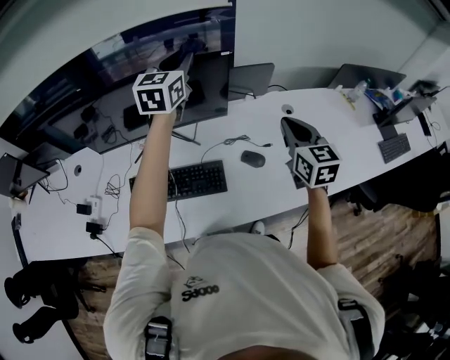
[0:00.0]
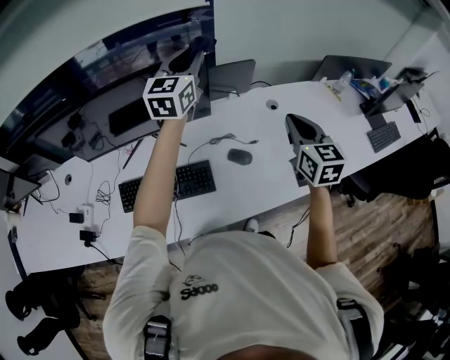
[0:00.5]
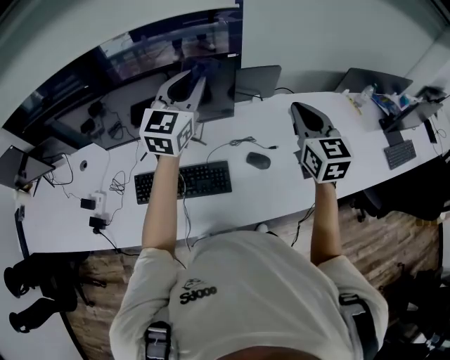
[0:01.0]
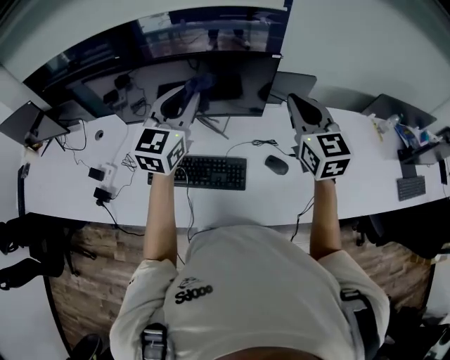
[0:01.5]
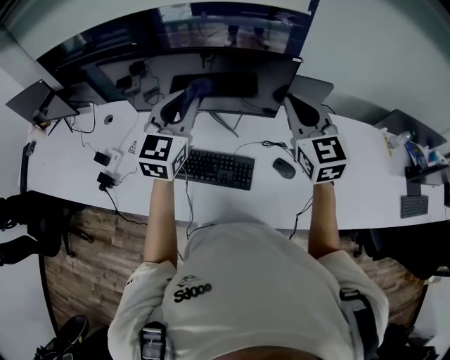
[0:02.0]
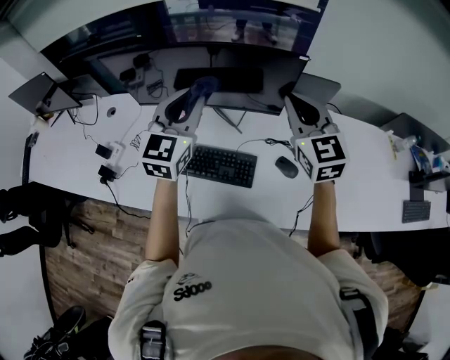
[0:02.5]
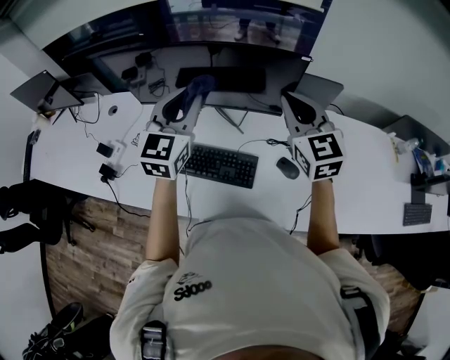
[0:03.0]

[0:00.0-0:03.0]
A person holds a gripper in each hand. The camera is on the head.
0:00.0 to 0:01.5: The right gripper travels to the left and upward by roughly 15 cm, while the left gripper travels backward and to the left by about 15 cm.
0:01.5 to 0:03.0: The right gripper shifts roughly 5 cm to the left. Meanwhile the left gripper ends up roughly 5 cm from where it was.

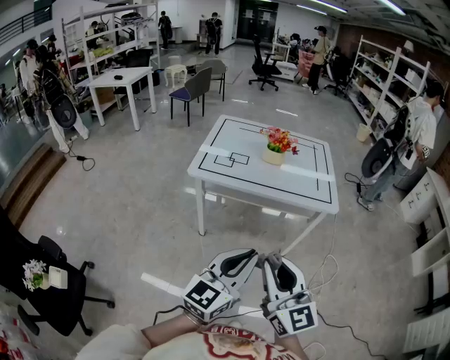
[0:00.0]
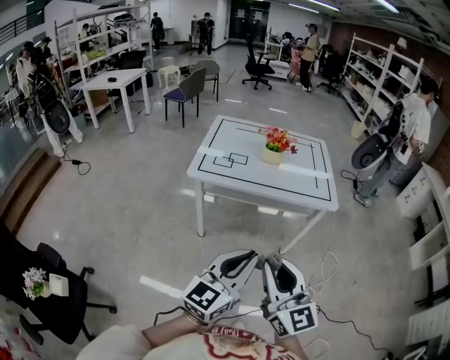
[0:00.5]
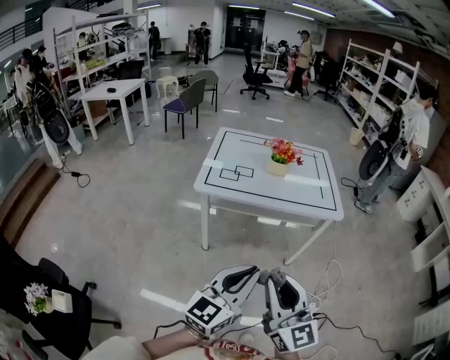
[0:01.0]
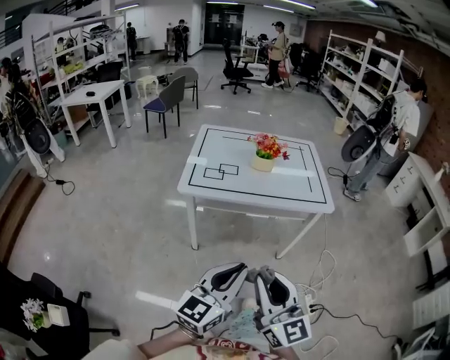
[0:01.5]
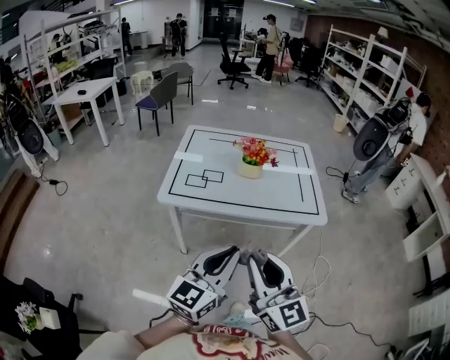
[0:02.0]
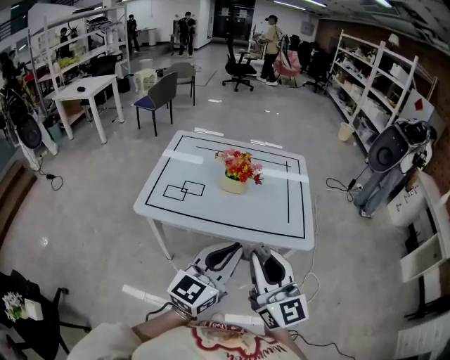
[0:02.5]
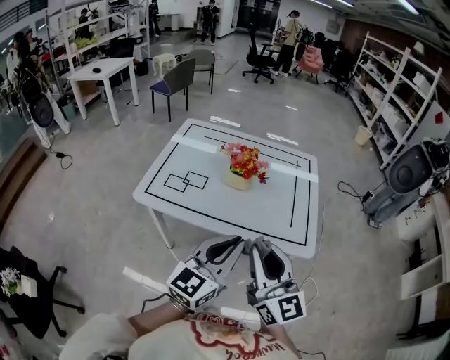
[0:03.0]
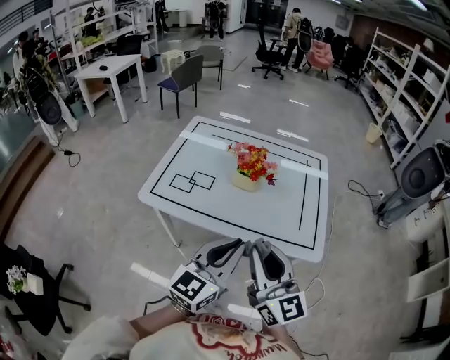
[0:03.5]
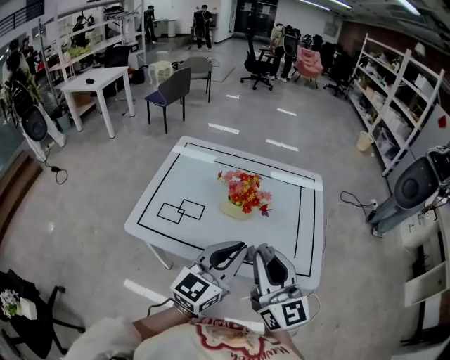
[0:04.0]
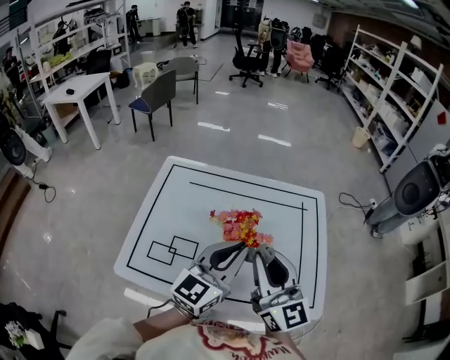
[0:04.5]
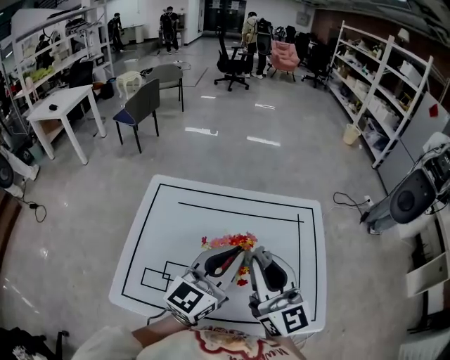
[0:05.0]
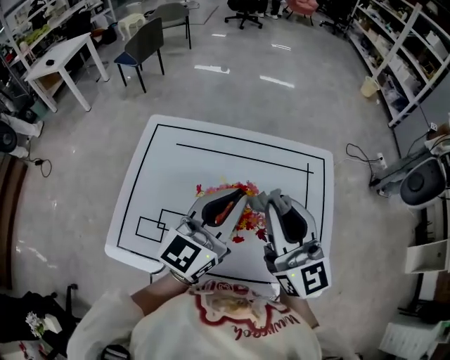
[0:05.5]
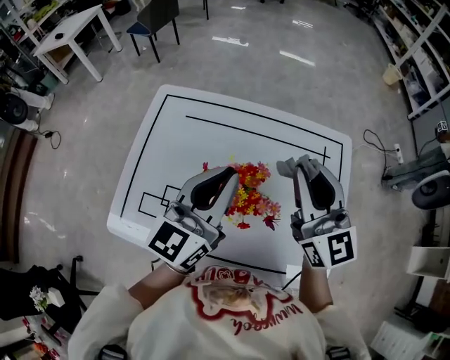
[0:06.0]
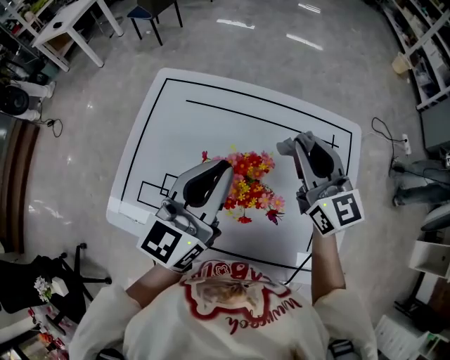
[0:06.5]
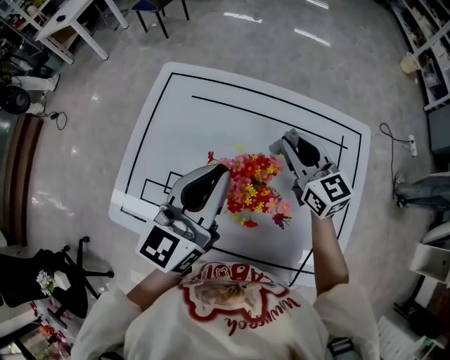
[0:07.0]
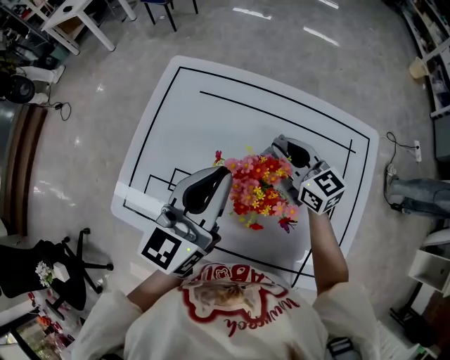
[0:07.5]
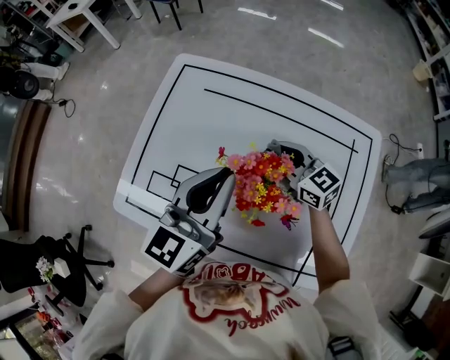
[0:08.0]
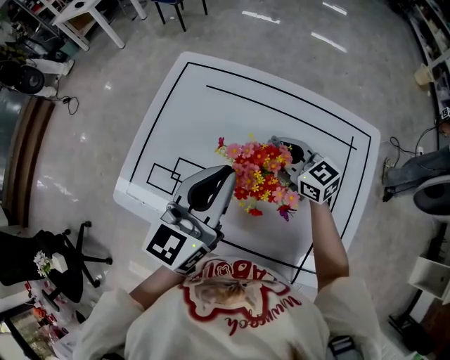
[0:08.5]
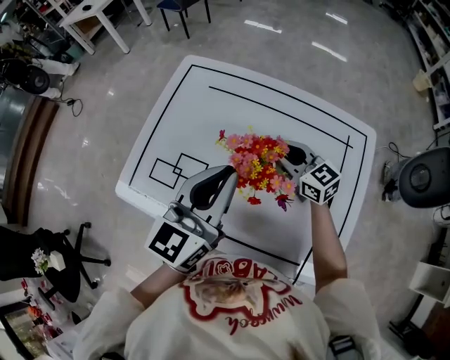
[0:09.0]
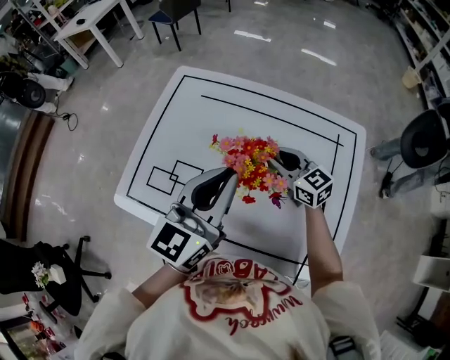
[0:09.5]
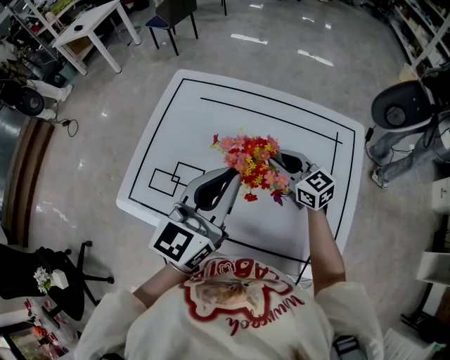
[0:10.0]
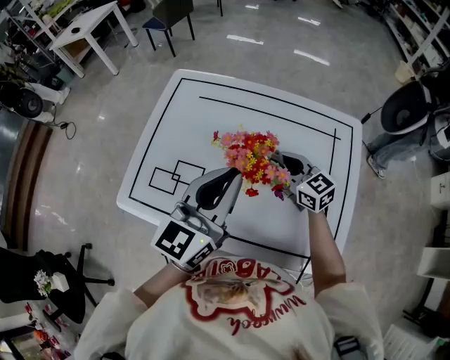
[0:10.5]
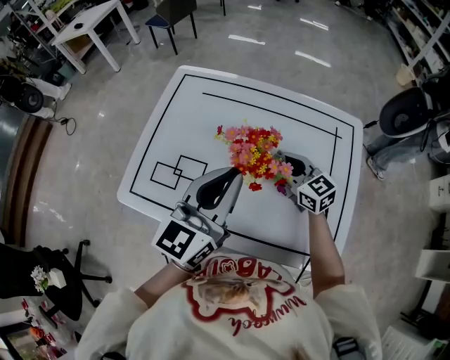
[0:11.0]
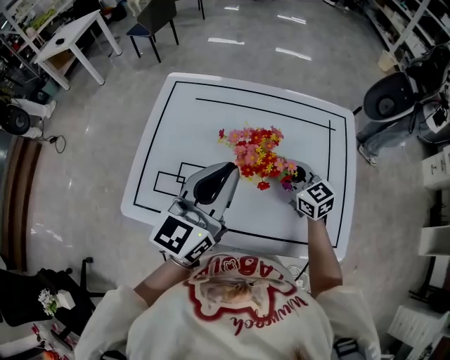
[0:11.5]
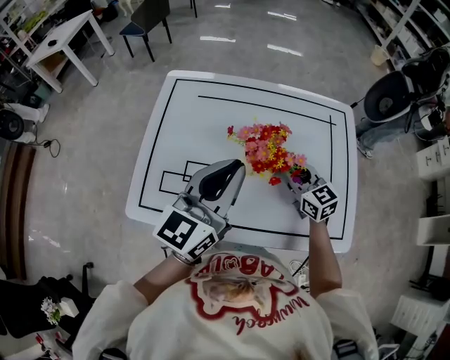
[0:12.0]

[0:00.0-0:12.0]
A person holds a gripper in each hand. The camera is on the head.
0:00.0 to 0:02.0: Both grippers travel together forward, some 15 cm.
0:02.0 to 0:04.0: The right gripper is displaced forward by some 30 cm, while the left gripper is displaced forward and to the right by roughly 30 cm.
0:04.0 to 0:06.0: The grippers both shift forward by about 30 cm.
0:06.0 to 0:08.0: The right gripper moves downward, roughly 25 cm, and changes its angle by some 40 degrees, while the left gripper changes place by some 5 cm.
0:08.0 to 0:10.0: Both grippers move backward, about 5 cm.
0:10.0 to 0:12.0: The left gripper is displaced to the left by some 5 cm; the right gripper heads backward, covering roughly 5 cm.

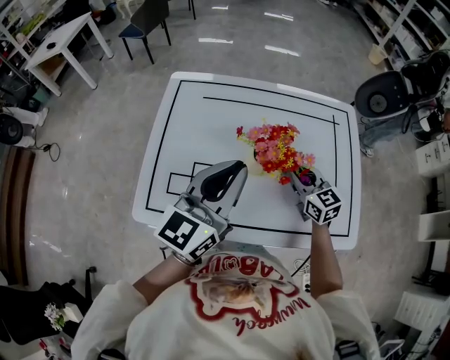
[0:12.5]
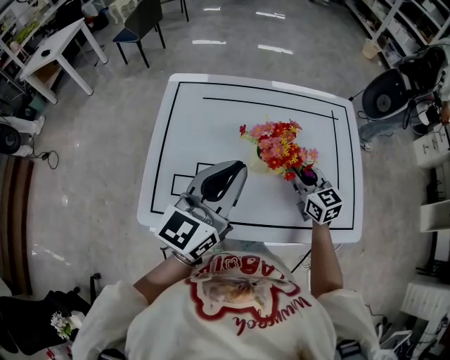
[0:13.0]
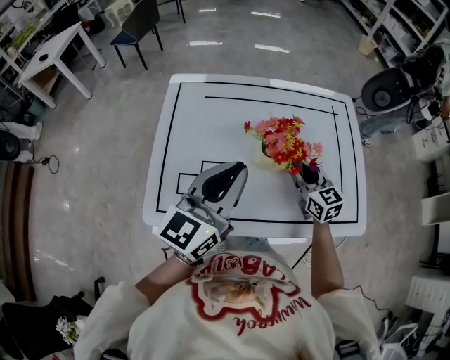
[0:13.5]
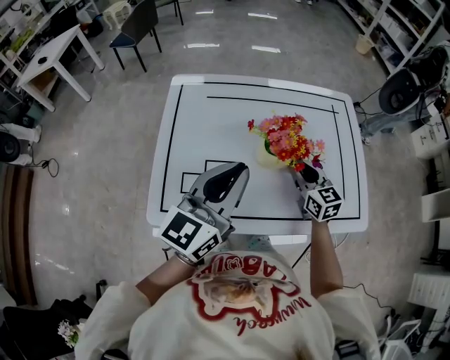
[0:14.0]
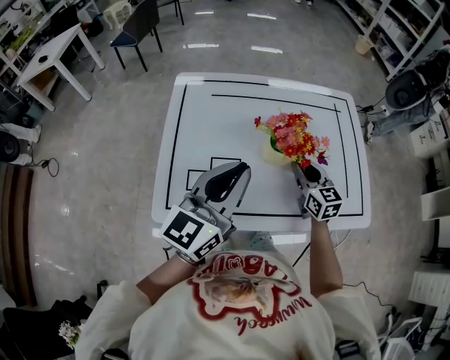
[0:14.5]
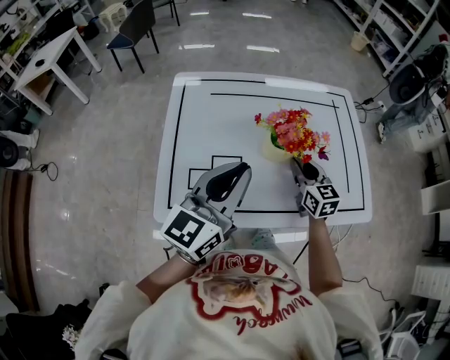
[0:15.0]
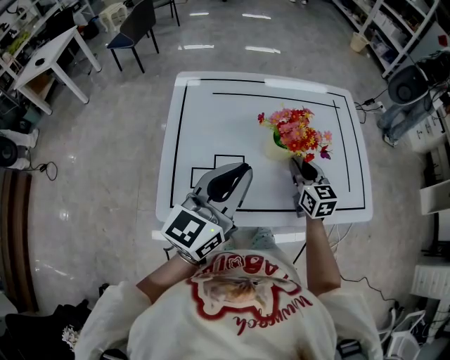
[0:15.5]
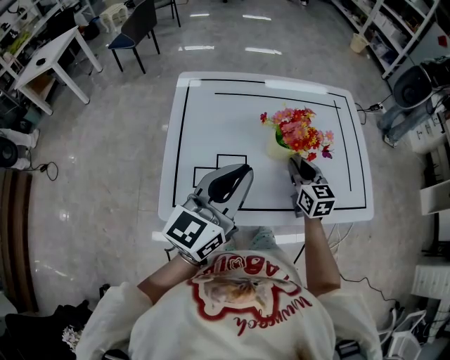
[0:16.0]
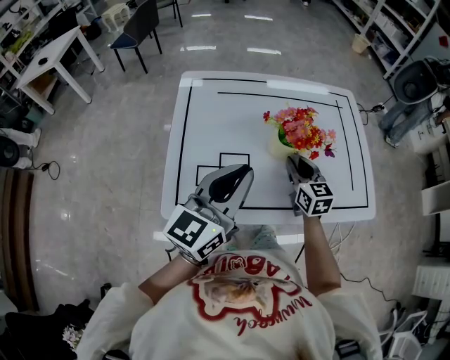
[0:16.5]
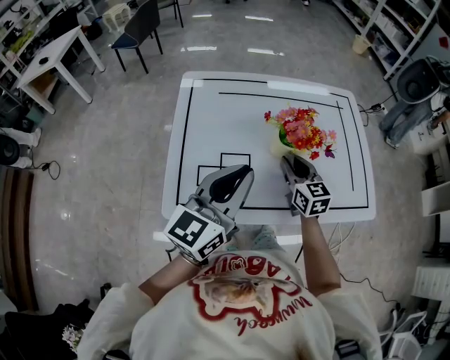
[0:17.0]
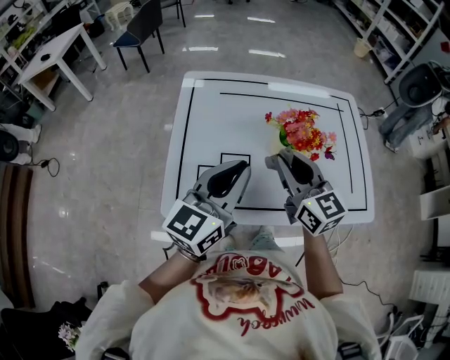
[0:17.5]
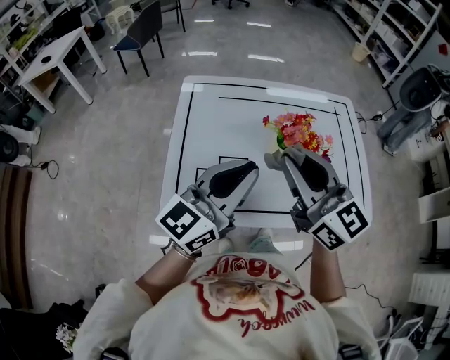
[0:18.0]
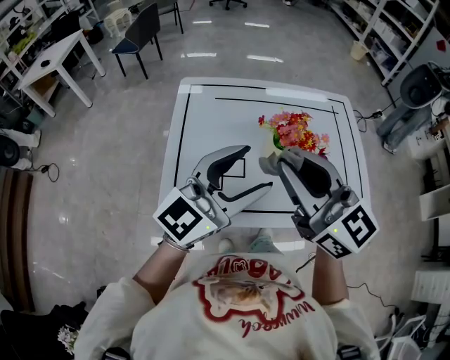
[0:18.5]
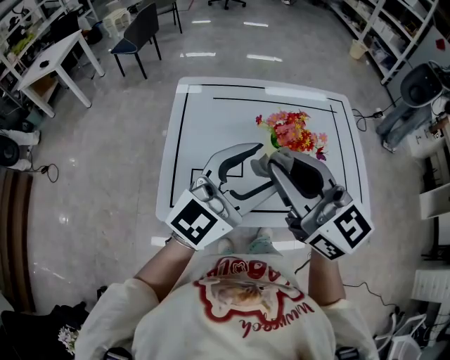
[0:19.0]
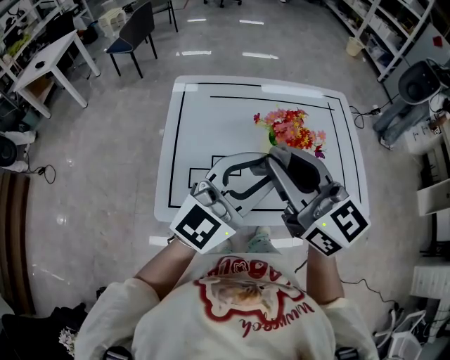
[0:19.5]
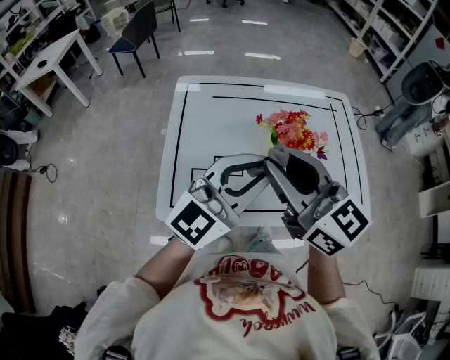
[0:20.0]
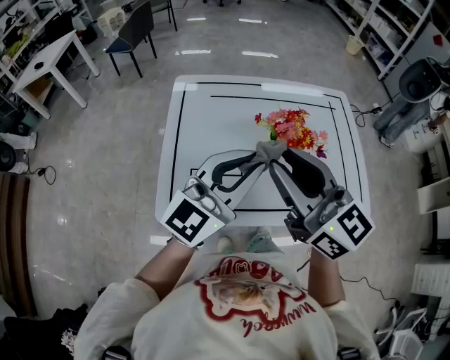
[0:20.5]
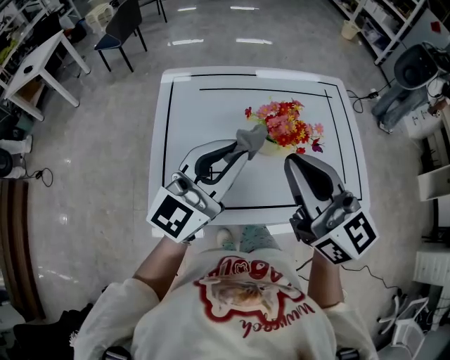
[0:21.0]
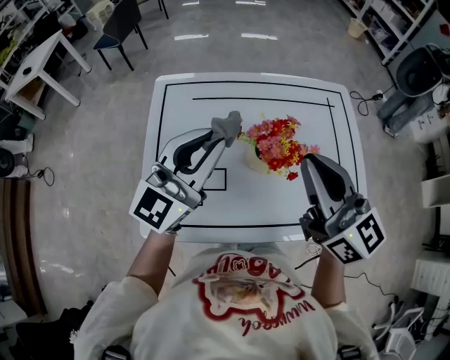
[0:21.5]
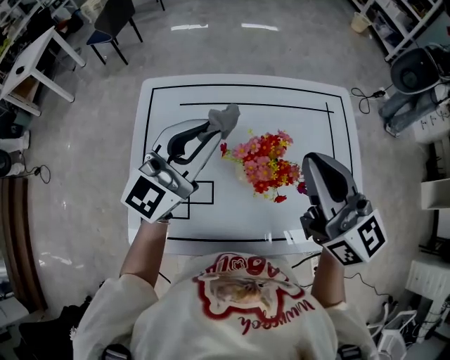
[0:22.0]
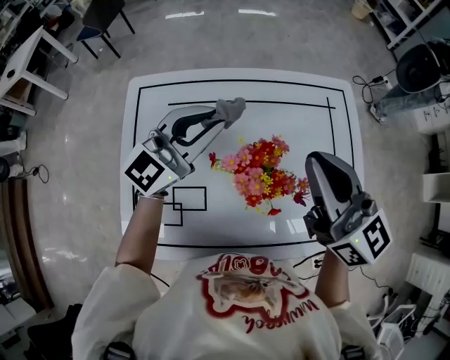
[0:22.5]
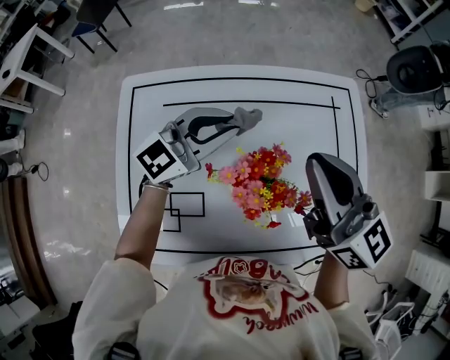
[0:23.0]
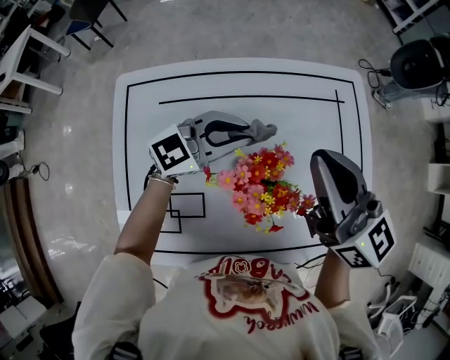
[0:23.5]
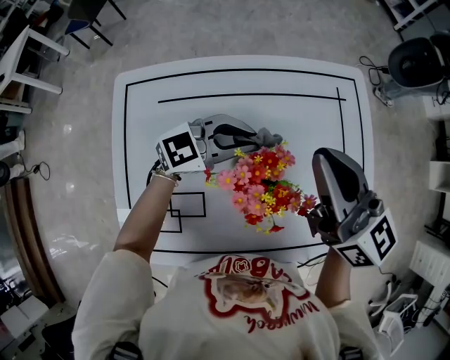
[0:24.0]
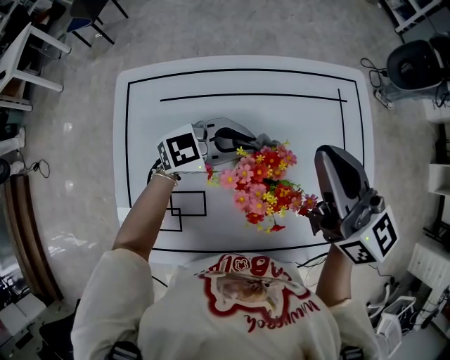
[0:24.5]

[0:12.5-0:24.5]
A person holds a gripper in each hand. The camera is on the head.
0:12.5 to 0:14.5: The left gripper travels to the left by roughly 5 cm.
0:14.5 to 0:16.5: There are only small adjustments of the grippers.
0:16.5 to 0:18.5: The right gripper is displaced upward and backward by some 30 cm, and swivels approximately 30 degrees. The left gripper shifts roughly 5 cm upward, rotates about 20 degrees, and opens up.
0:18.5 to 0:20.5: The left gripper closes.
0:20.5 to 0:22.5: The left gripper moves forward, approximately 25 cm, while the right gripper heads forward and to the right, covering about 25 cm, and closes.
0:22.5 to 0:24.5: The right gripper ends up approximately 5 cm from where it was. The left gripper shifts about 15 cm downward and to the right, and turns by roughly 40 degrees.
